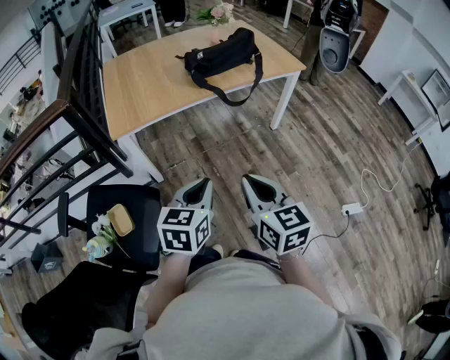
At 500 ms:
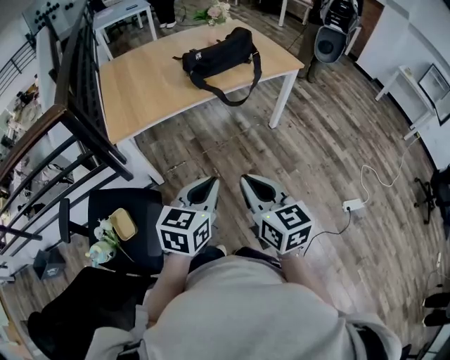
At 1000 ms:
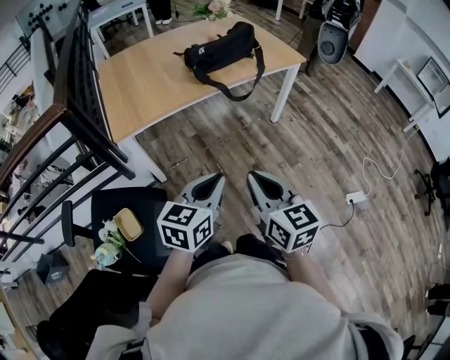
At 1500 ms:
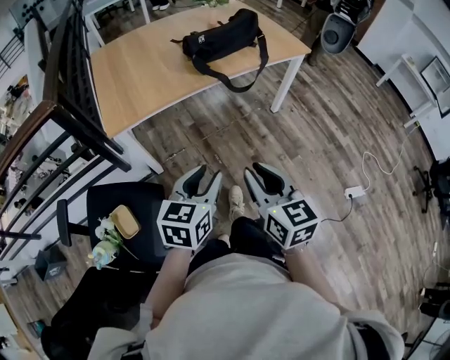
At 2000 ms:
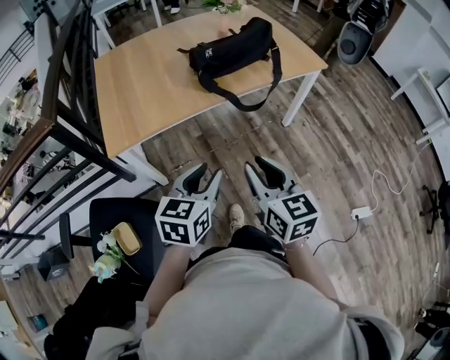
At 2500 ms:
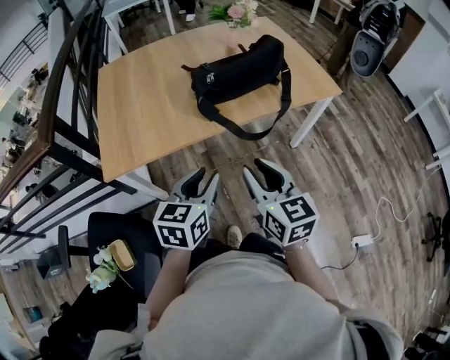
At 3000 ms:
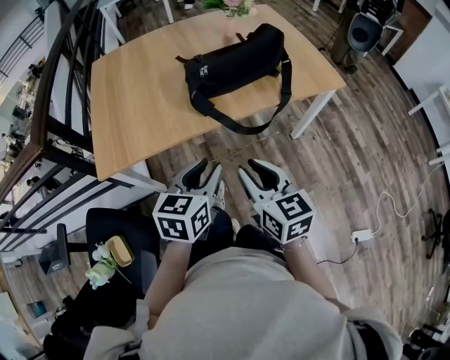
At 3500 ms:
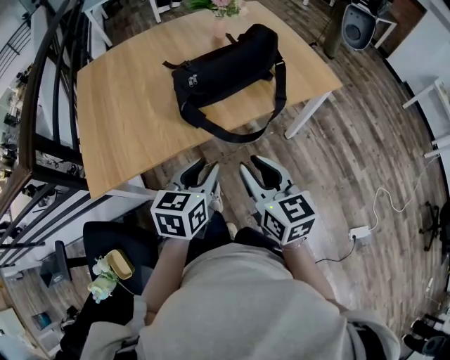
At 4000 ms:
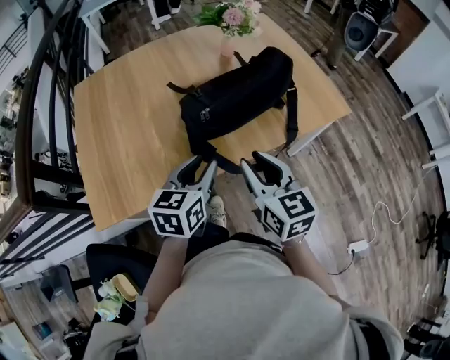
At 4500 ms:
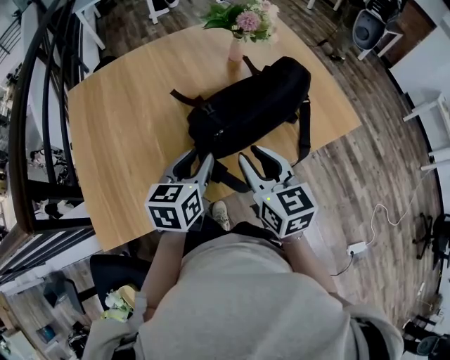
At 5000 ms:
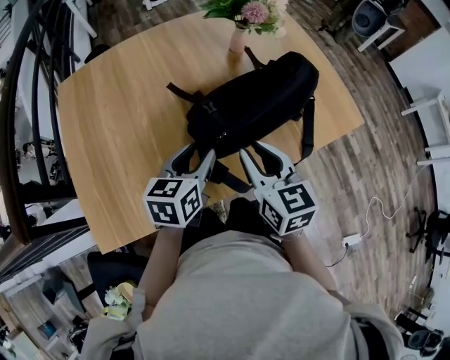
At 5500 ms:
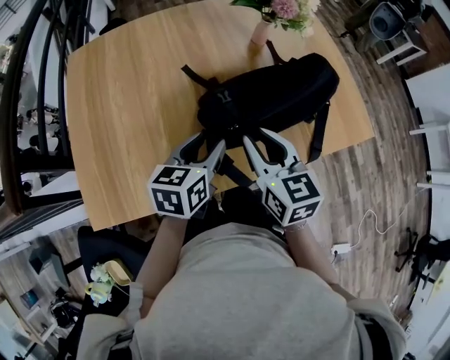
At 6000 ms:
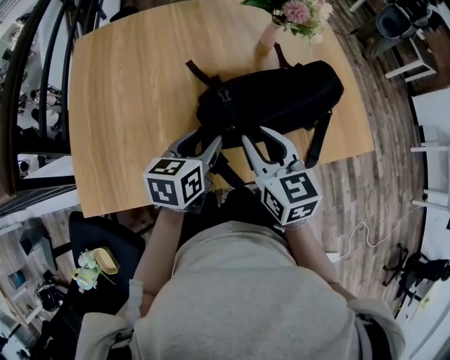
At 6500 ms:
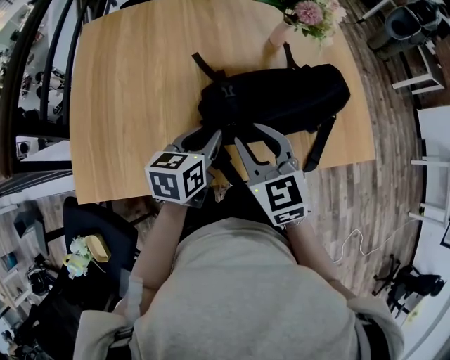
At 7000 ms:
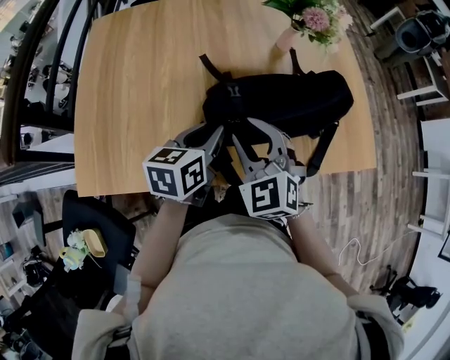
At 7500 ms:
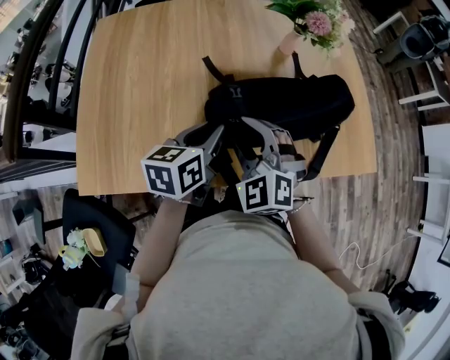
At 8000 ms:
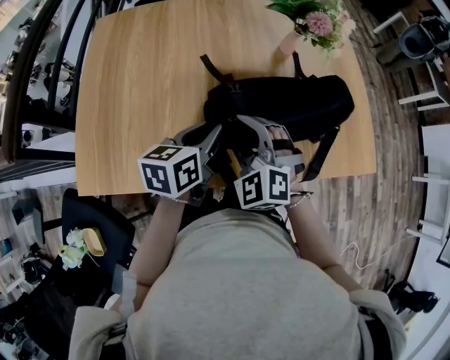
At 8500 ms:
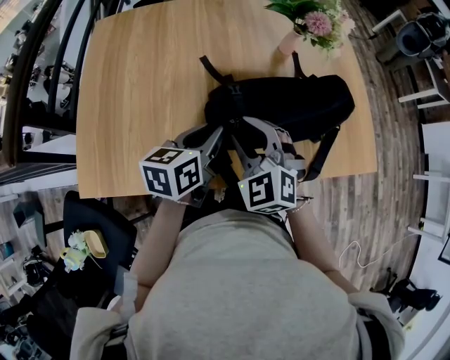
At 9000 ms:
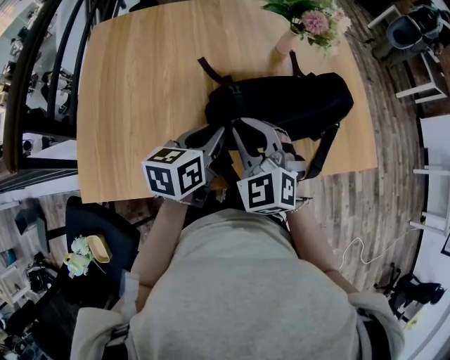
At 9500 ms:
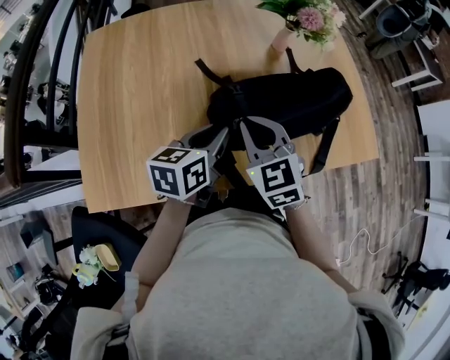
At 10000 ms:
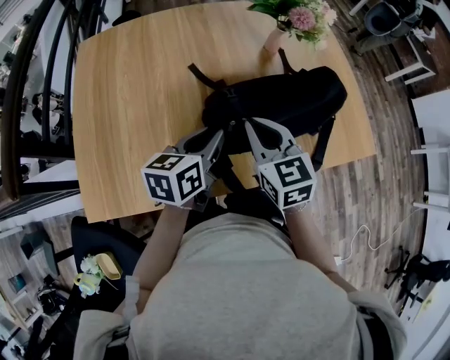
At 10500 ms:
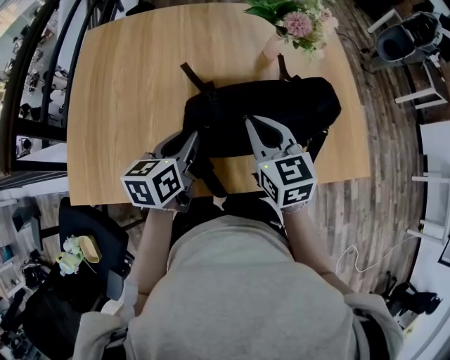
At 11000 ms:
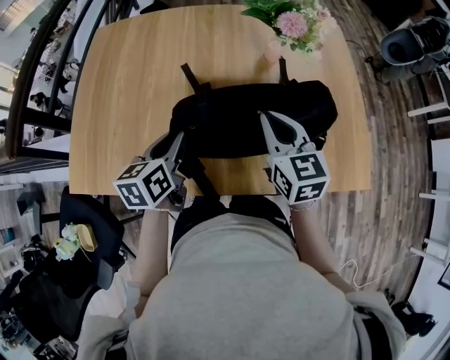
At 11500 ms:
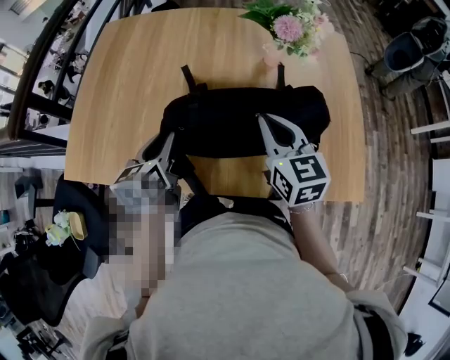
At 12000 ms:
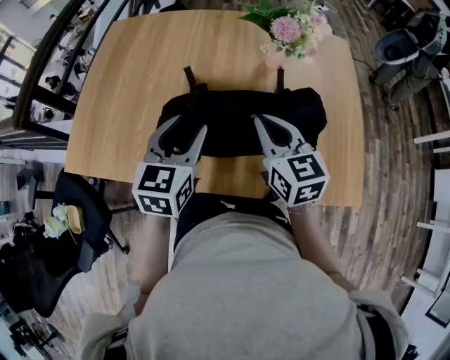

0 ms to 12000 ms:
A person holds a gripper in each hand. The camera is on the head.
0 ms to 2000 ms: Both grippers travel together forward, roughly 20 cm. The left gripper opens its fingers, while the right gripper opens.
2000 ms to 4000 ms: Both grippers move forward, about 35 cm.
4000 ms to 6000 ms: Both grippers travel together forward, about 15 cm.
6000 ms to 8000 ms: The right gripper moves to the left, about 5 cm, and rolls counterclockwise, seen from behind, by roughly 60 degrees, while the left gripper closes up.
8000 ms to 10000 ms: The right gripper rotates around the line of its fingers by roughly 50 degrees, clockwise from behind, and closes.
10000 ms to 12000 ms: The right gripper ends up approximately 15 cm from where it was, while the left gripper ends up roughly 10 cm from where it was, turns by about 40 degrees, and opens its fingers.

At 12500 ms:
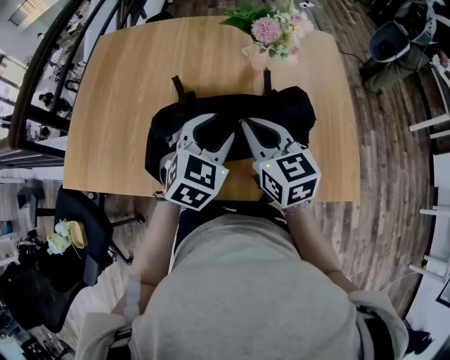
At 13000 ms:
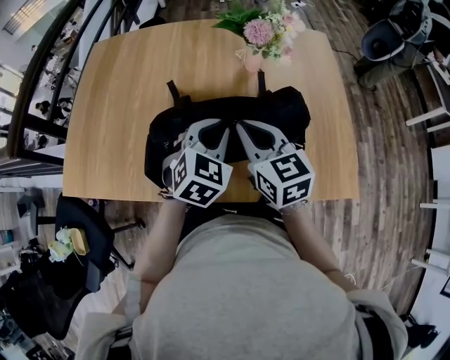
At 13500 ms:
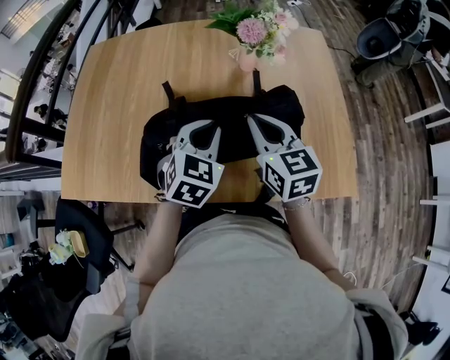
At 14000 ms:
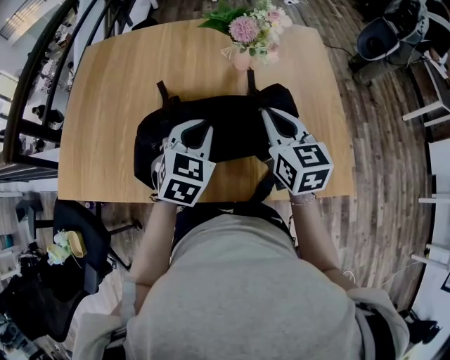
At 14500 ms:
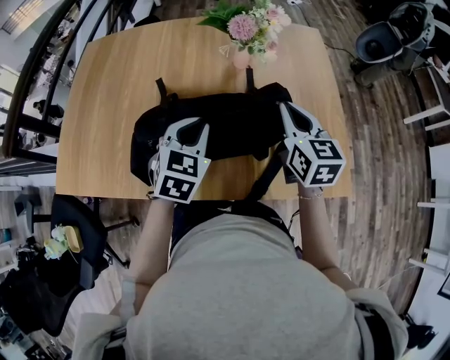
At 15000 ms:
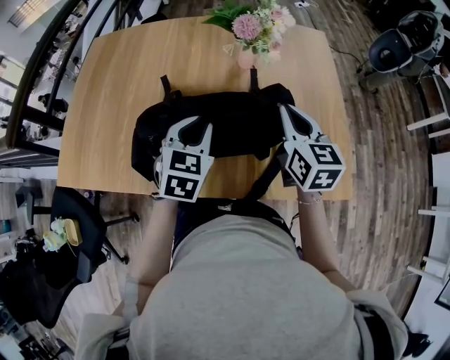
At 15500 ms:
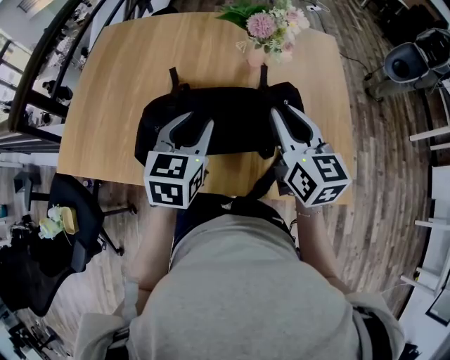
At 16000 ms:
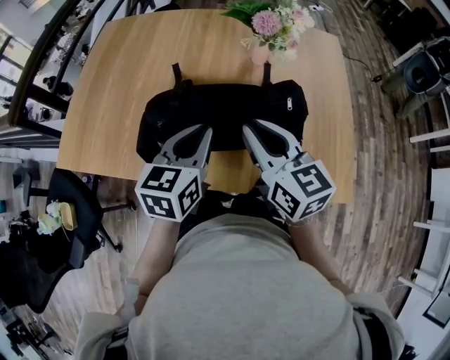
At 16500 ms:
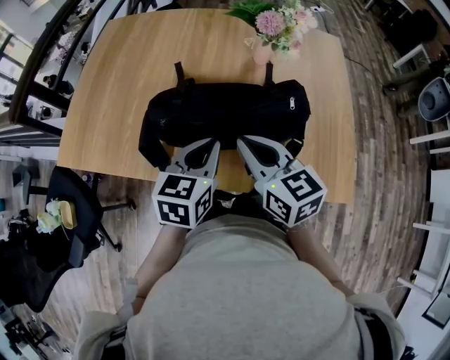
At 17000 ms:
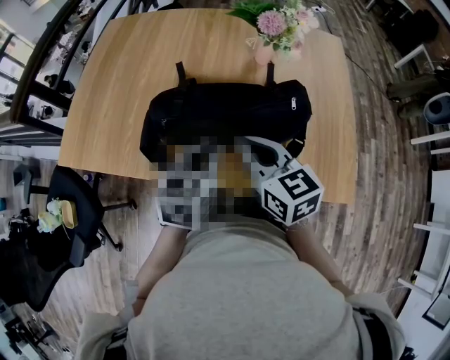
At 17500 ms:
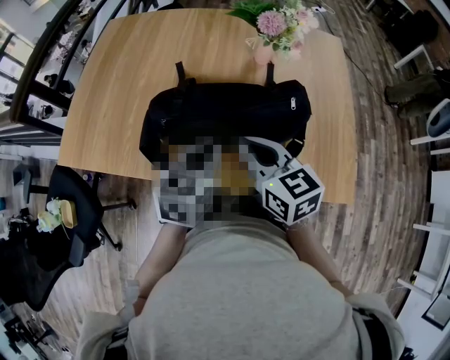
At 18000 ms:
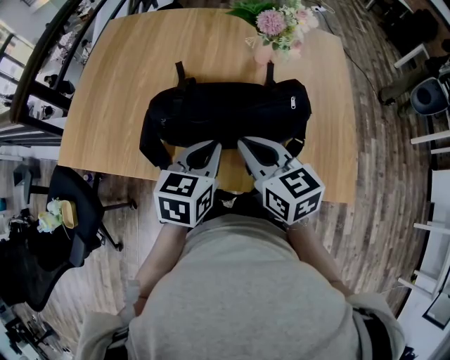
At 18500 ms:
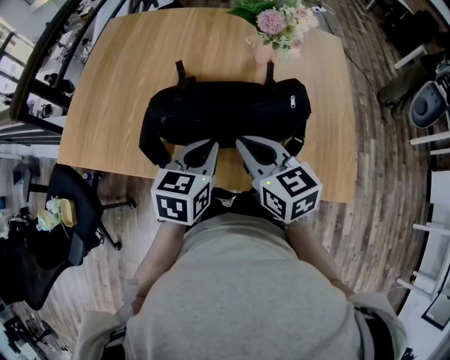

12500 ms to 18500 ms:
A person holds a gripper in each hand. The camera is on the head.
12500 ms to 14500 ms: The left gripper closes. The right gripper heads to the right, covering about 15 cm.
14500 ms to 16500 ms: The left gripper shifts about 10 cm backward, turns by roughly 30 degrees, and opens, then closes again, while the right gripper moves to the left and backward, roughly 15 cm, and changes its angle by roughly 30 degrees.
16500 ms to 18500 ms: The grippers stay close to where they were, moving slightly.

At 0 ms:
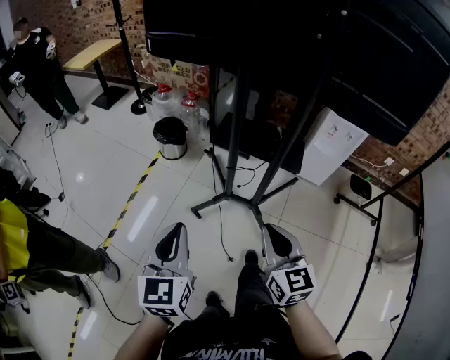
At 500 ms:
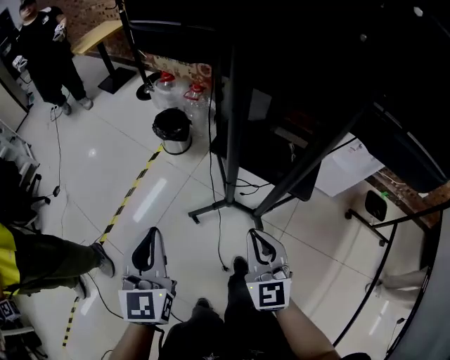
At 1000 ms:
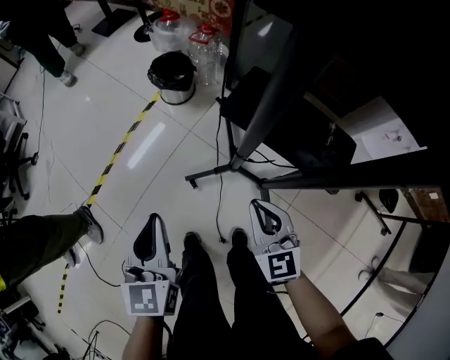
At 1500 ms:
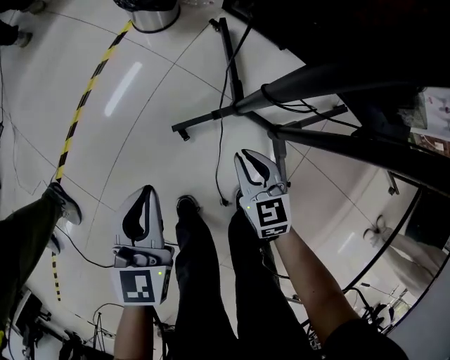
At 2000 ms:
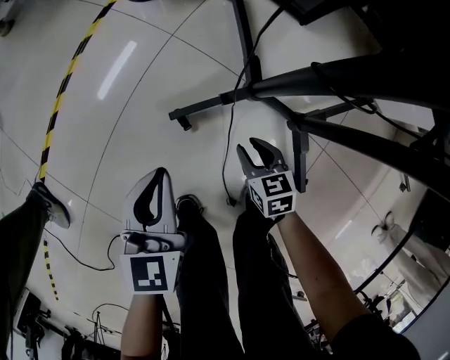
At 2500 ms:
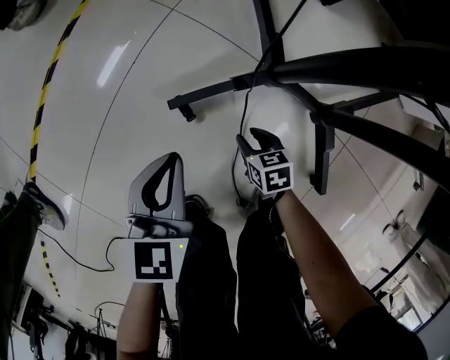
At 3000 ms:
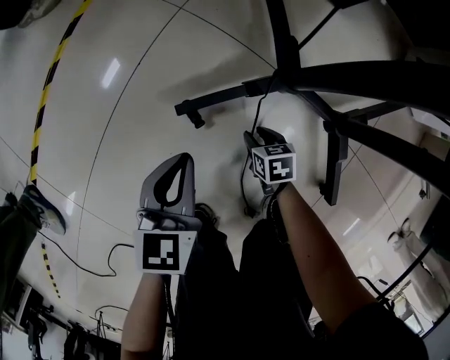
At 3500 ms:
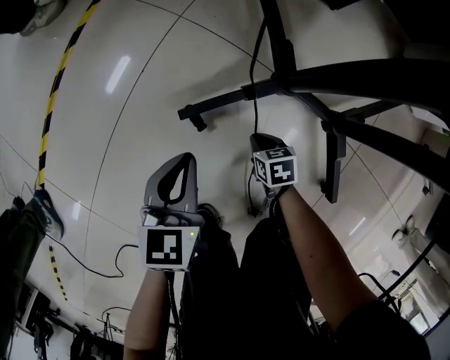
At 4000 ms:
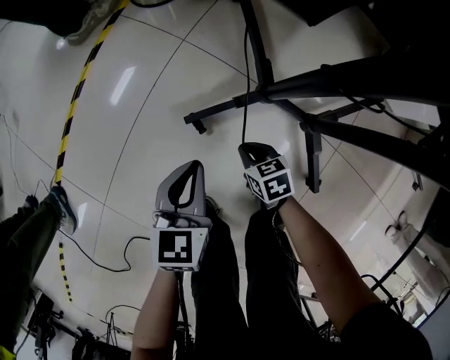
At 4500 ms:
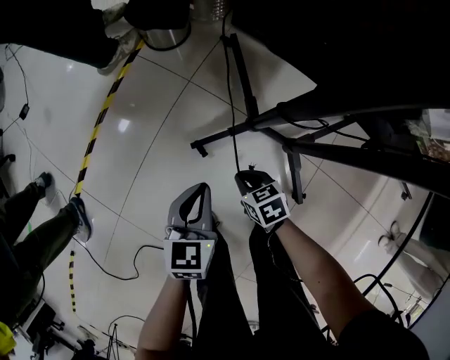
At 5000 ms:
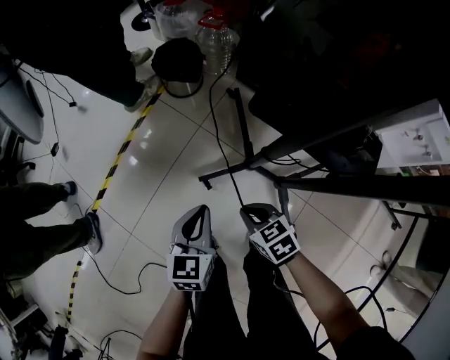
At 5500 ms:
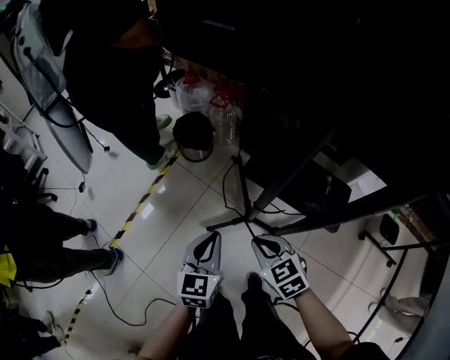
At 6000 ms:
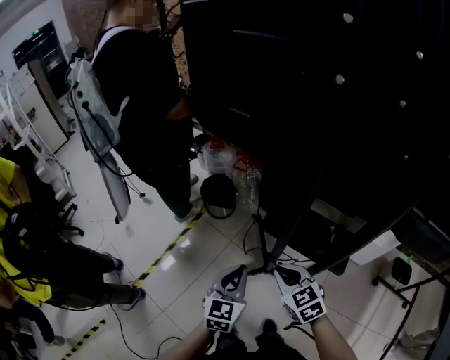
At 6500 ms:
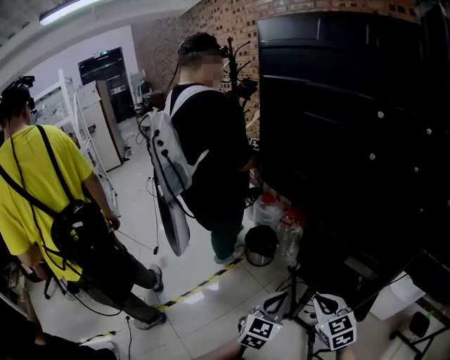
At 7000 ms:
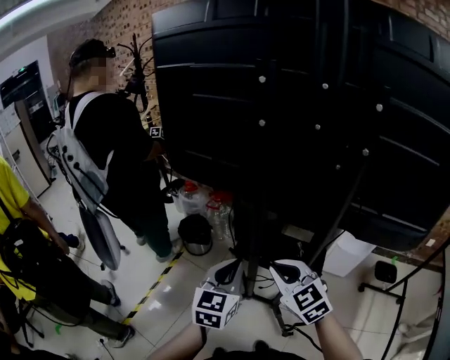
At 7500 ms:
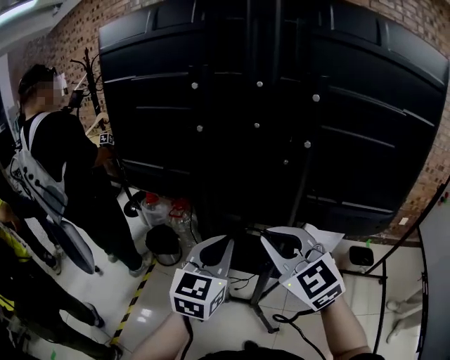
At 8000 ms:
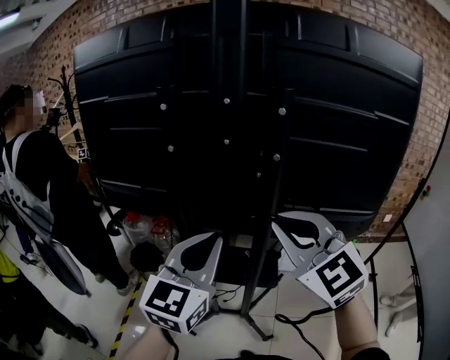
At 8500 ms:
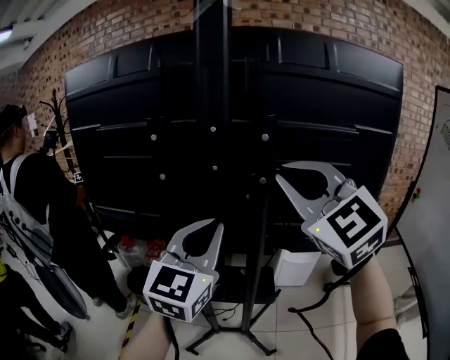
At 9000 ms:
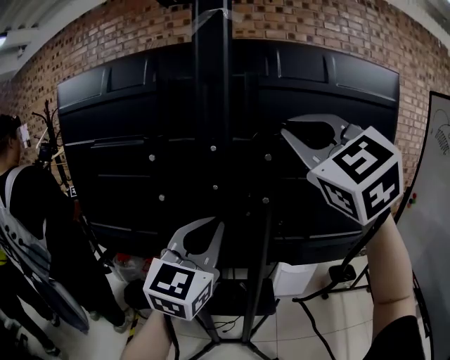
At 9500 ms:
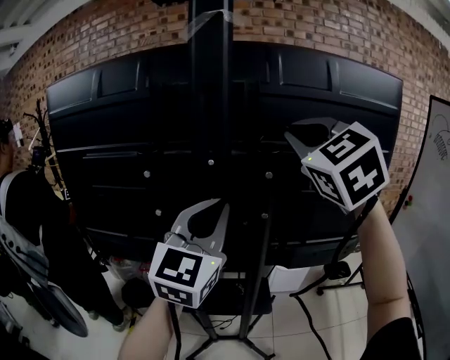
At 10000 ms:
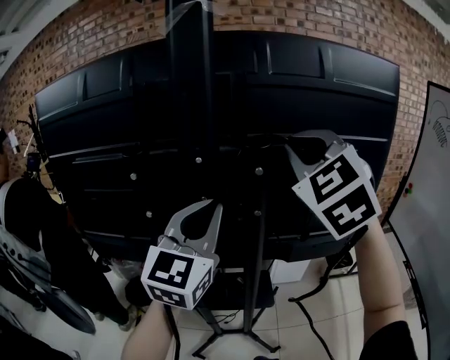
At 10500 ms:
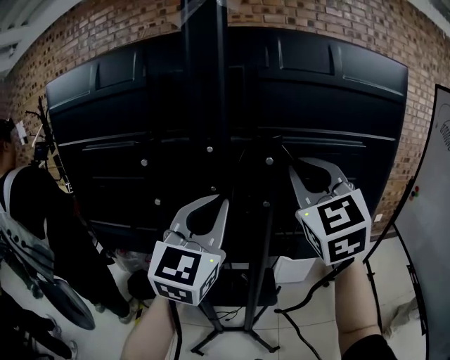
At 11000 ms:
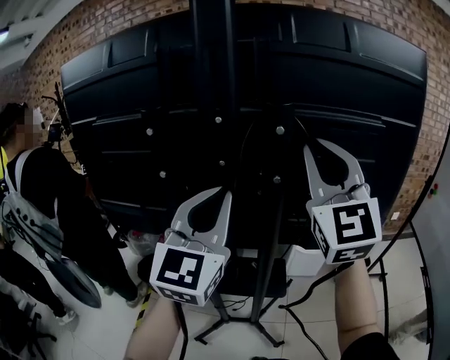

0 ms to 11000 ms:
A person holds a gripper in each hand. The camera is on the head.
0 ms to 2000 ms: The left gripper moves downward and forward, approximately 50 cm, while the right gripper heads downward, covering roughly 60 cm, tips its fingers downward by about 40 degrees, and opens.
2000 ms to 3500 ms: Both grippers travel together downward, some 15 cm. The right gripper changes its angle by approximately 20 degrees, and closes its fingers.
3500 ms to 5500 ms: Both grippers move upward, roughly 60 cm. The right gripper turns by roughly 40 degrees.
5500 ms to 7500 ms: The right gripper is displaced upward by some 40 cm, and angles its fingers upward, by some 30 degrees; the left gripper heads upward and to the right, covering some 35 cm, and turns by some 30 degrees.
7500 ms to 9000 ms: The left gripper moves upward, roughly 20 cm, and rotates about 20 degrees, while the right gripper goes roughly 30 cm upward, and turns by about 30 degrees.
9000 ms to 11000 ms: The right gripper heads downward, covering some 10 cm, and swivels roughly 20 degrees.
